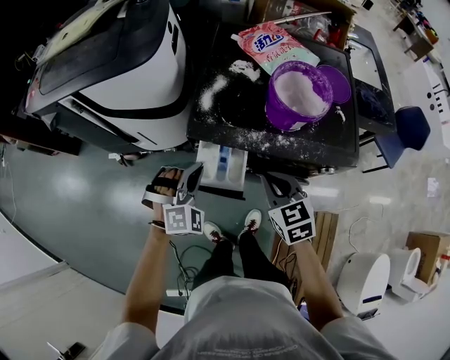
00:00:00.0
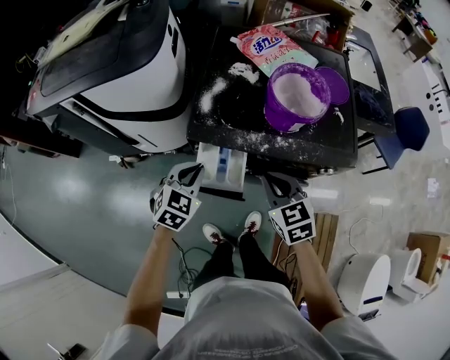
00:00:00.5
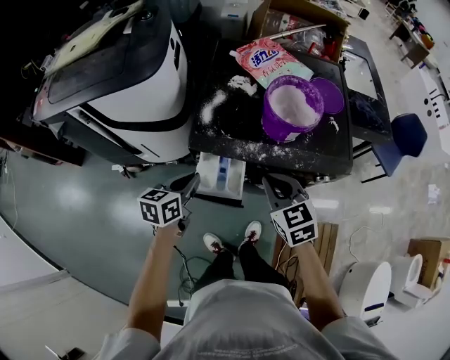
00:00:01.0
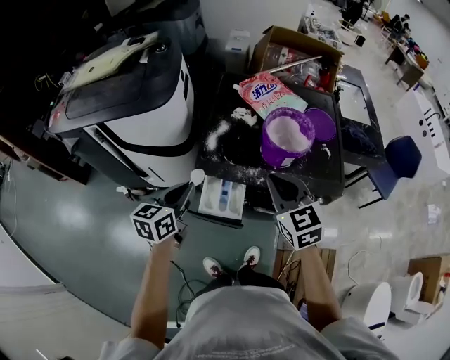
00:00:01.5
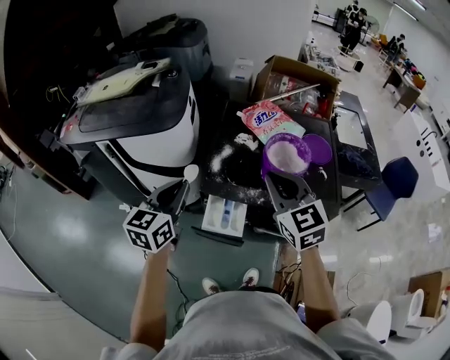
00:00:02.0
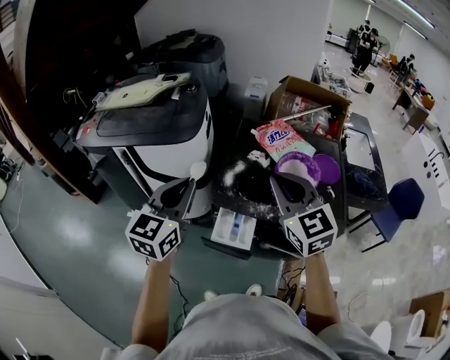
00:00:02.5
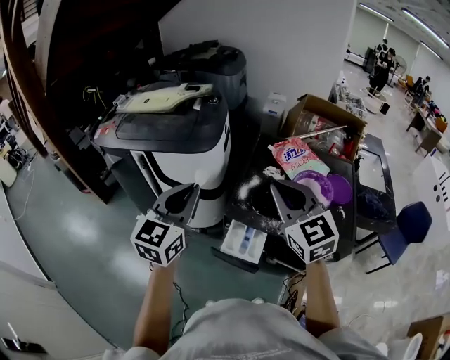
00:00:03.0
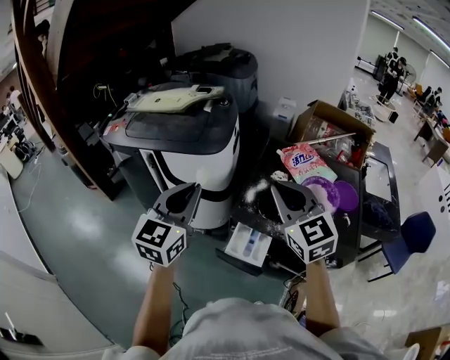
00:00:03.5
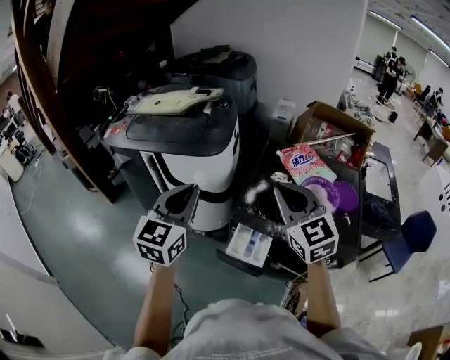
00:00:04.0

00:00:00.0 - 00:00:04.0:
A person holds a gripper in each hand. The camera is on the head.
00:00:00.0 - 00:00:02.0: The two grippers go some 20 cm upward. The right gripper swivels some 20 degrees. The left gripper rolls counterclockwise, seen from behind, by approximately 70 degrees.
00:00:02.0 - 00:00:04.0: The right gripper moves to the left and upward, some 10 cm; the left gripper goes roughly 10 cm upward and to the left, and changes its angle by some 20 degrees.

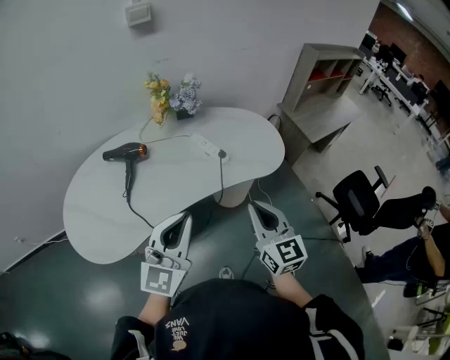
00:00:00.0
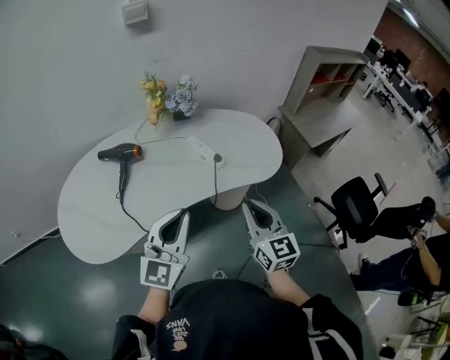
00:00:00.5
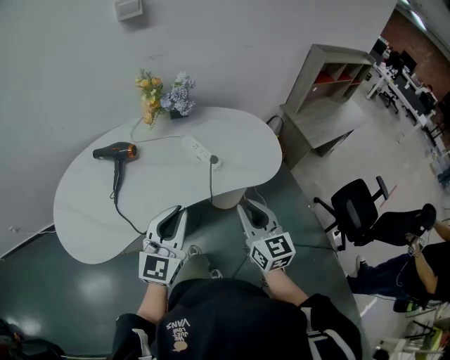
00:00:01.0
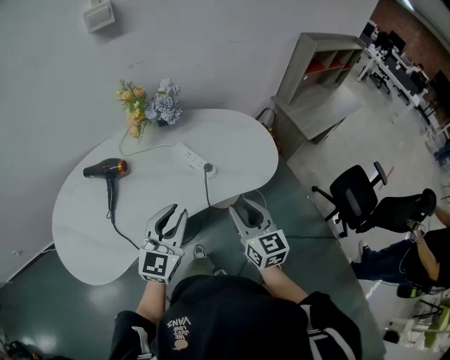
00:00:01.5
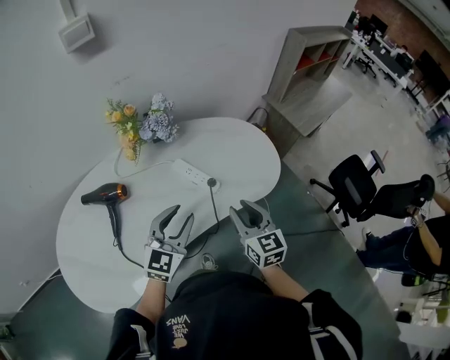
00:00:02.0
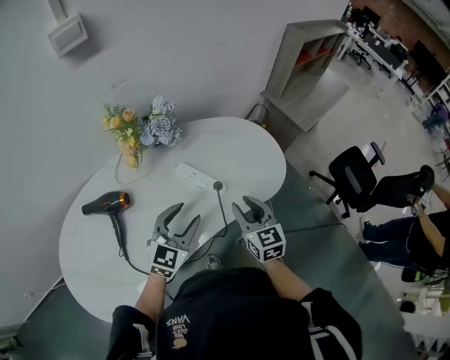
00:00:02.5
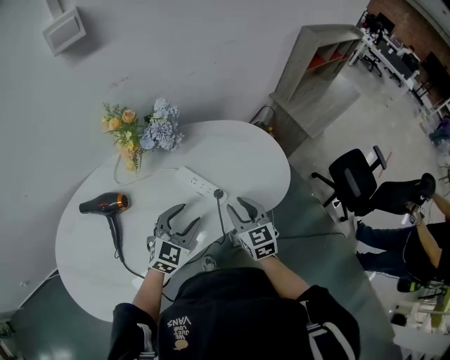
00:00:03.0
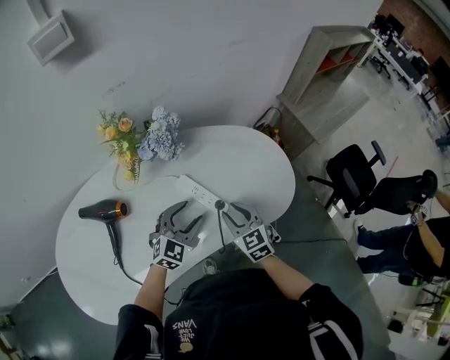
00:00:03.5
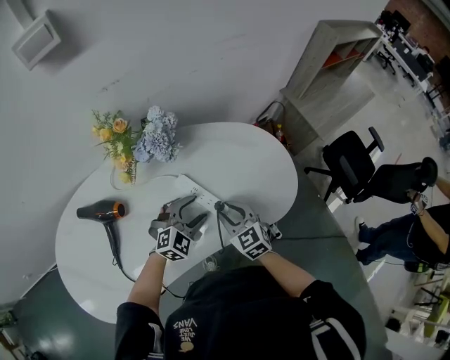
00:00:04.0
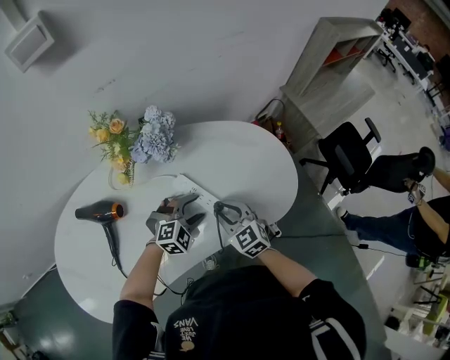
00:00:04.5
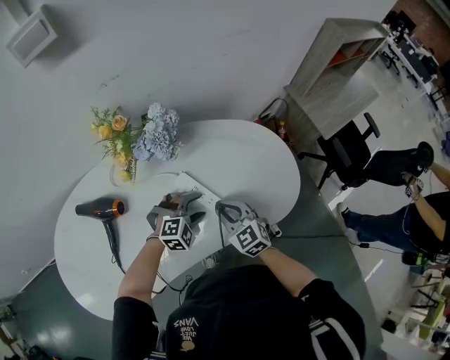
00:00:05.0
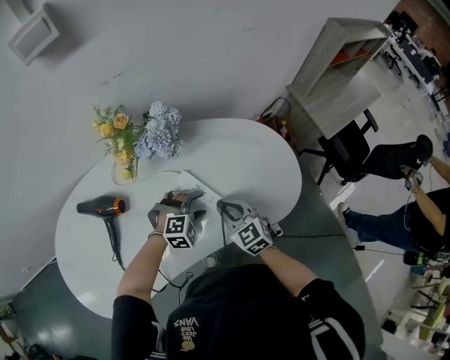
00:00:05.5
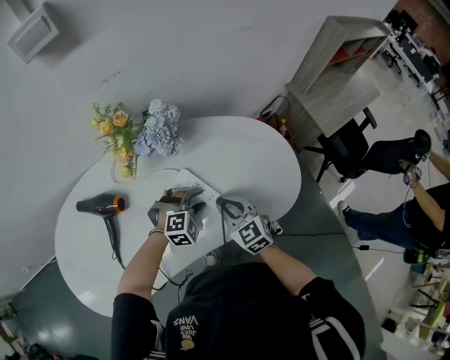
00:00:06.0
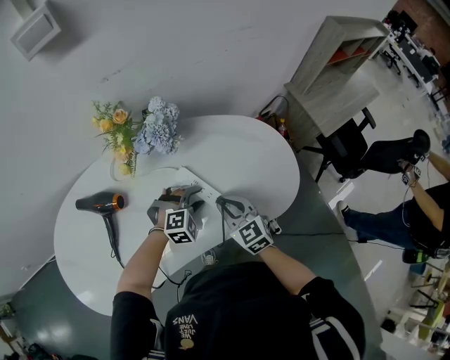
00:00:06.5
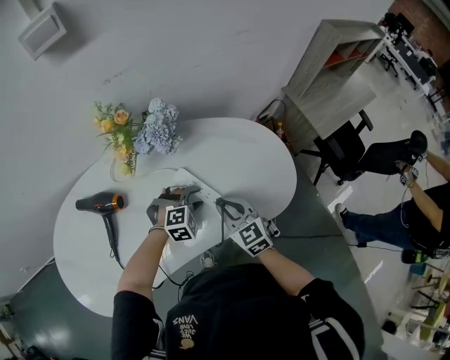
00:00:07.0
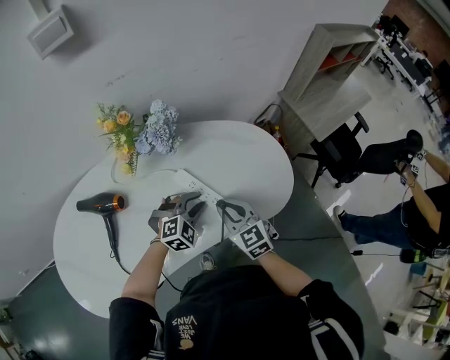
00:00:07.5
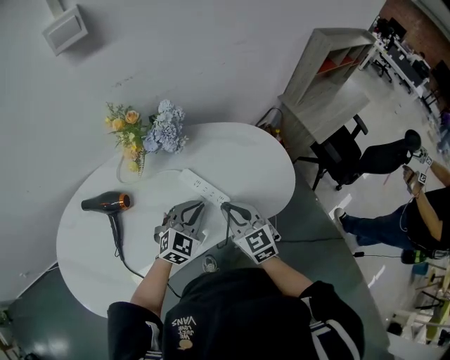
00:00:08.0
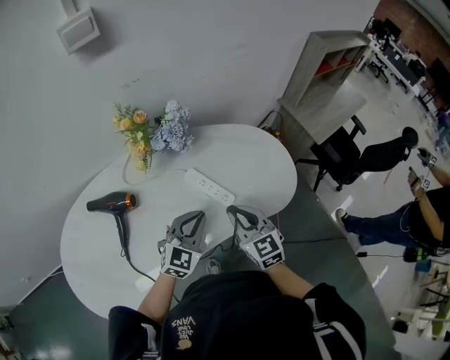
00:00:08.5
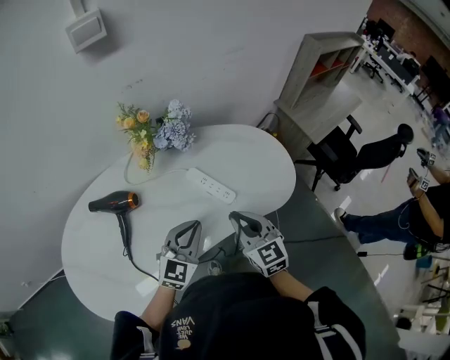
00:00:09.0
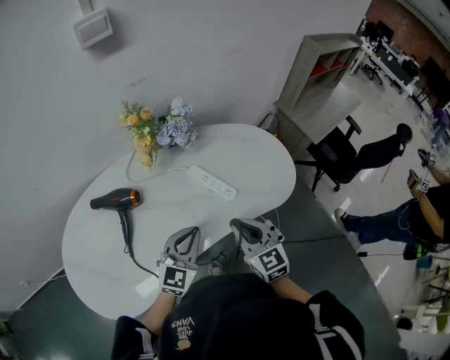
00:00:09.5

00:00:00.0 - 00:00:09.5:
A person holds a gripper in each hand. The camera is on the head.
00:00:00.0 - 00:00:02.0: Both grippers travel together forward and downward, some 25 cm. The left gripper turns by about 20 degrees, and opens.
00:00:02.0 - 00:00:04.0: The right gripper is displaced forward, downward and to the left by about 20 cm, and changes its angle by roughly 30 degrees. Meanwhile the left gripper heads downward and forward, covering some 20 cm, changes its angle by roughly 30 degrees, and opens.
00:00:04.0 - 00:00:05.5: The left gripper turns by approximately 20 degrees.
00:00:05.5 - 00:00:07.5: The right gripper ends up about 5 cm from where it was. The left gripper heads forward, covering some 5 cm, and closes.
00:00:07.5 - 00:00:09.5: The left gripper moves backward, upward and to the left, some 20 cm, rotates roughly 40 degrees, and closes its fingers. The right gripper shifts some 15 cm backward and upward.

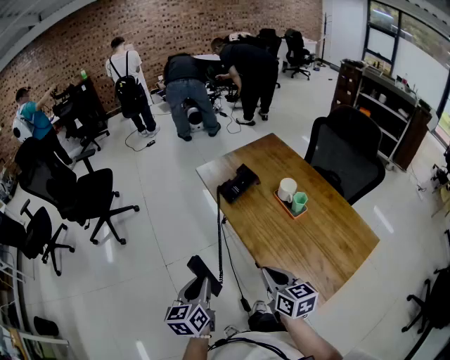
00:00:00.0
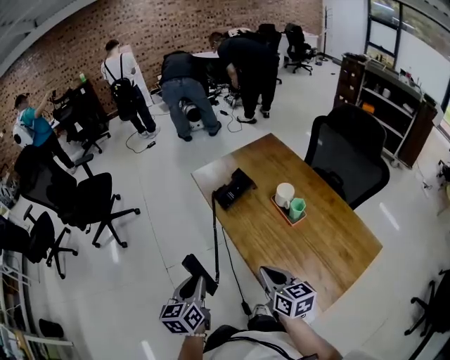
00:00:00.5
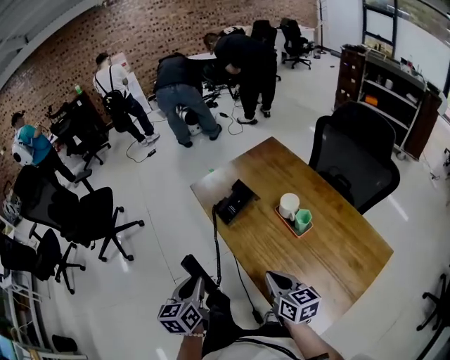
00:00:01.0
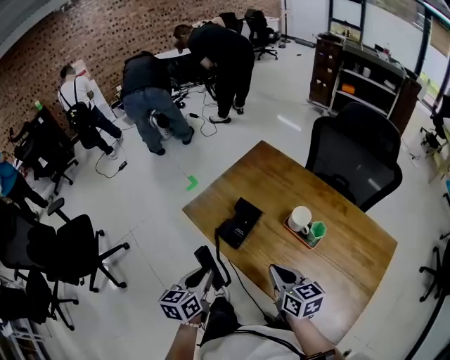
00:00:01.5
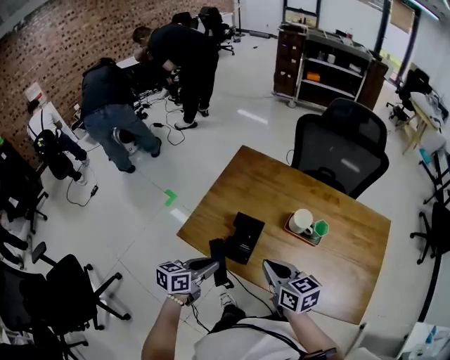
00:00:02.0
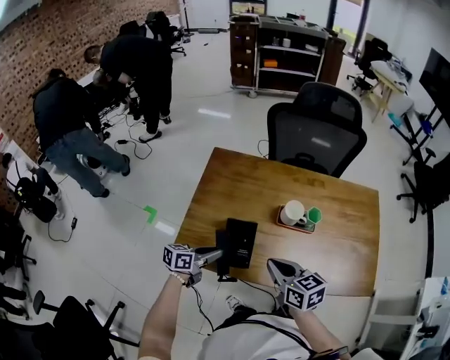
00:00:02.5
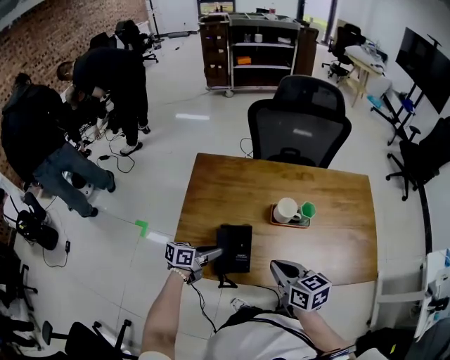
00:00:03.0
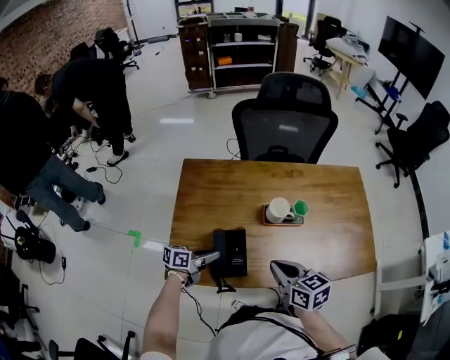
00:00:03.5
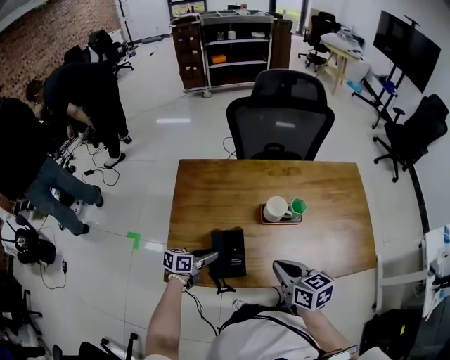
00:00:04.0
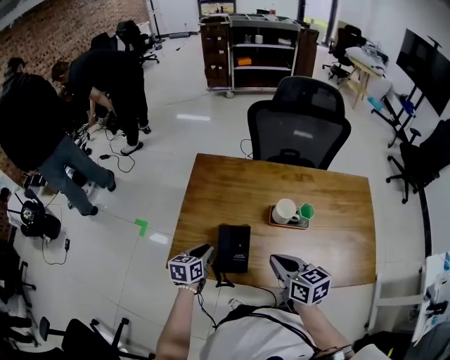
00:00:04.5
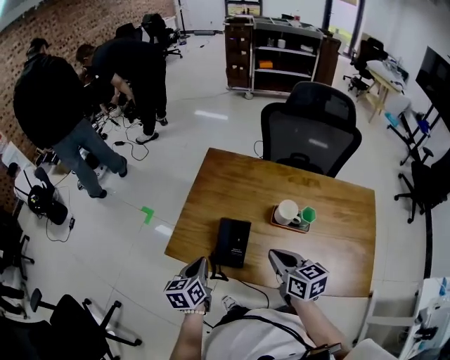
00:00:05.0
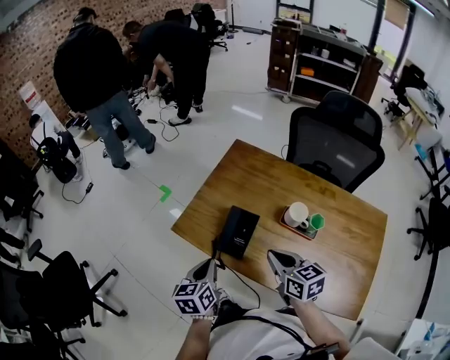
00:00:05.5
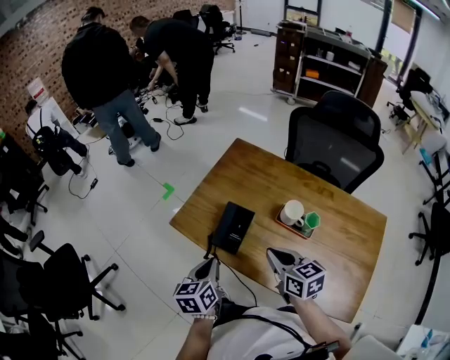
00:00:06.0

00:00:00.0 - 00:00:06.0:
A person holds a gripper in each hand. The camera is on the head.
00:00:00.0 - 00:00:02.0: The left gripper ends up roughly 40 cm from where it was, and rotates about 70 degrees. The right gripper ends up roughly 30 cm from where it was, and turns by approximately 30 degrees.
00:00:02.0 - 00:00:04.0: The right gripper turns by roughly 30 degrees; the left gripper moves some 20 cm, changes its angle by about 30 degrees, and opens up.
00:00:04.0 - 00:00:06.0: The right gripper rotates about 30 degrees. The left gripper changes place by some 25 cm, changes its angle by about 70 degrees, and closes.

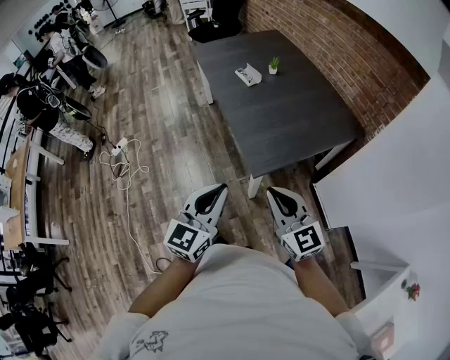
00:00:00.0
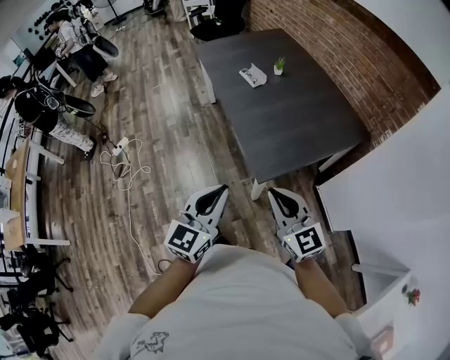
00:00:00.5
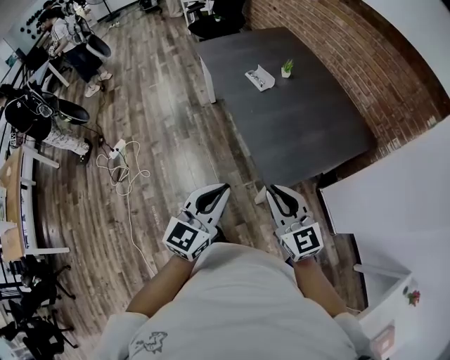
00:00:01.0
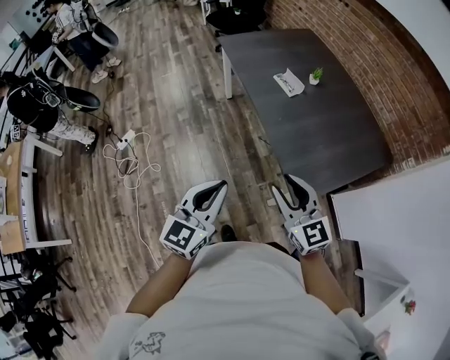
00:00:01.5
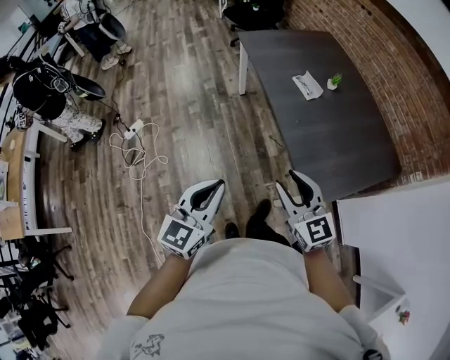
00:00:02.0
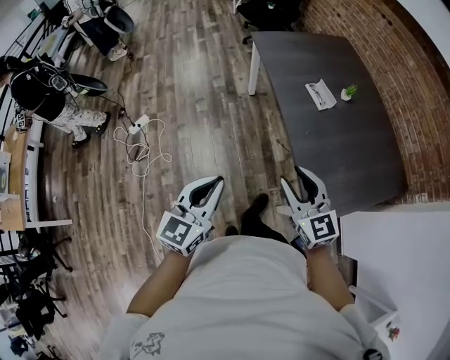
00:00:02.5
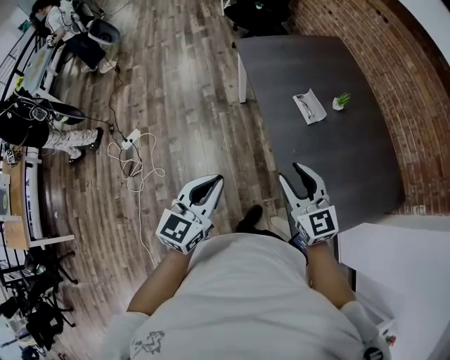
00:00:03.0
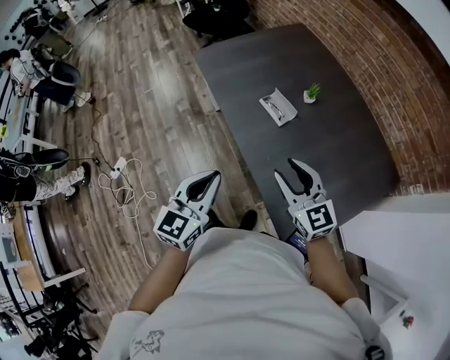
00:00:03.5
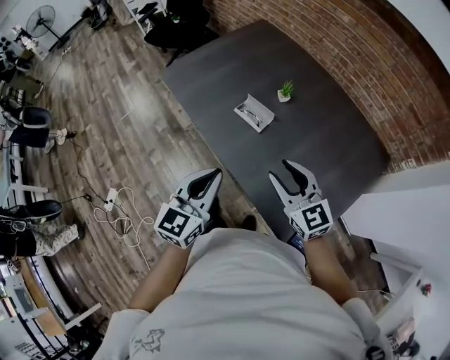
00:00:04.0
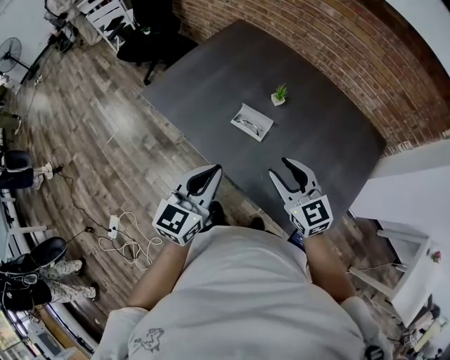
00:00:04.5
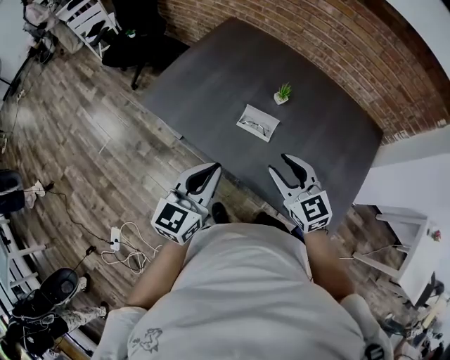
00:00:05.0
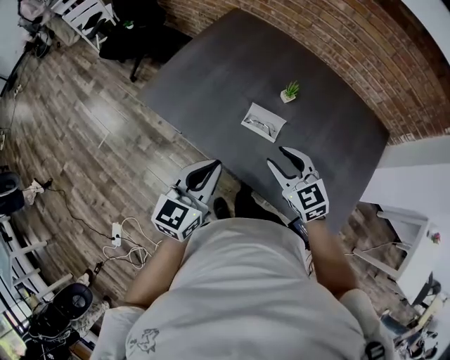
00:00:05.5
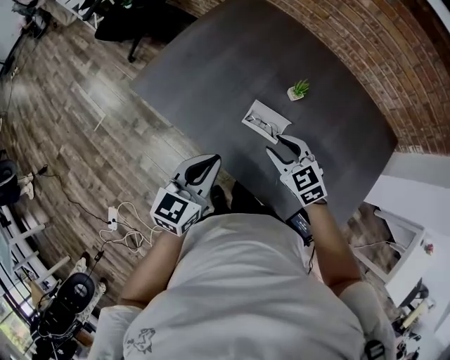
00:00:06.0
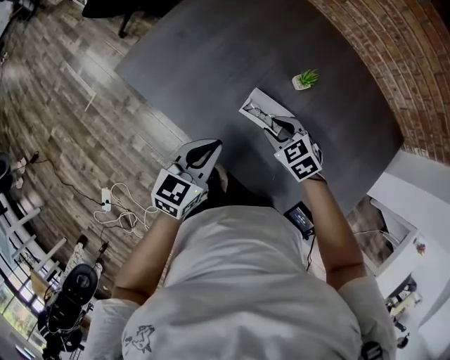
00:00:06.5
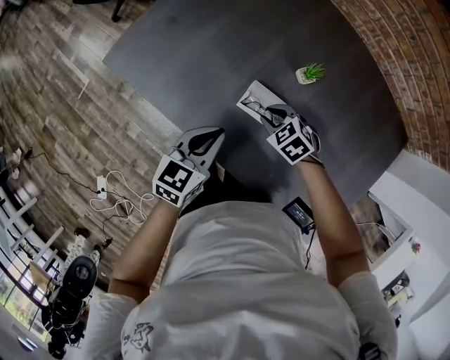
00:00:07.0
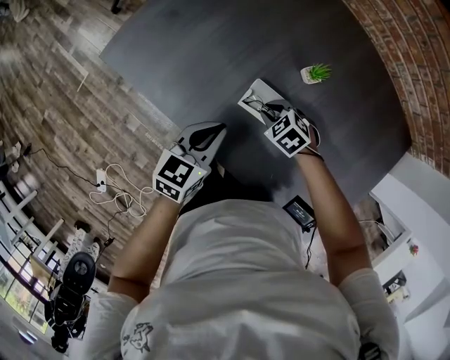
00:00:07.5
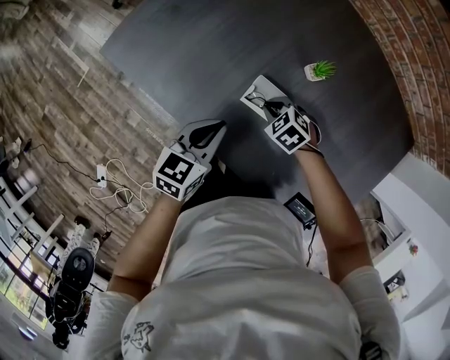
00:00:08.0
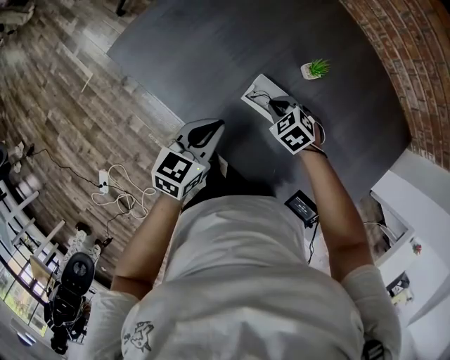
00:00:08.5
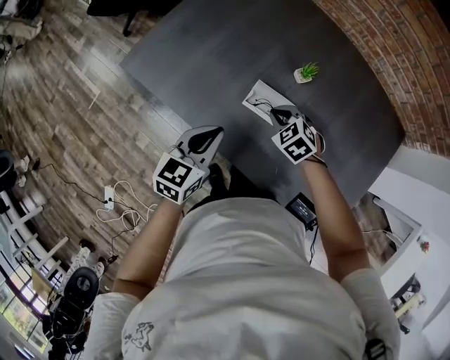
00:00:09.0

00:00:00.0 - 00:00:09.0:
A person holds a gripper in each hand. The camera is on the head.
00:00:00.0 - 00:00:02.0: Both grippers move to the left and forward, roughly 30 cm. The right gripper opens up.
00:00:02.0 - 00:00:04.5: The right gripper shifts by about 40 cm, and changes its angle by approximately 30 degrees. The left gripper shifts by approximately 50 cm, and turns by about 30 degrees.
00:00:04.5 - 00:00:07.0: Both grippers move downward and forward, some 30 cm. The right gripper points its fingers roughly 50 degrees further downward, while the left gripper changes its angle by roughly 20 degrees.
00:00:07.0 - 00:00:09.0: The right gripper goes roughly 5 cm upward, and closes, while the left gripper changes place by some 5 cm.
